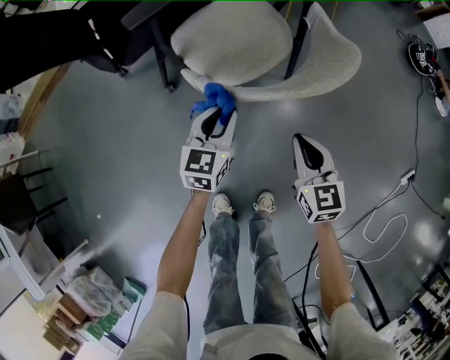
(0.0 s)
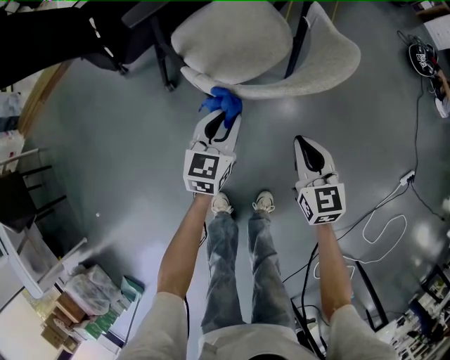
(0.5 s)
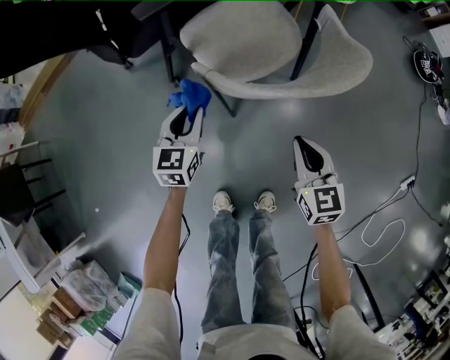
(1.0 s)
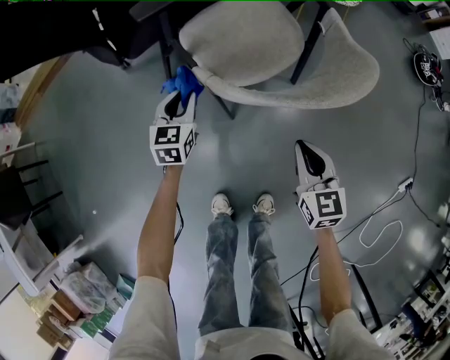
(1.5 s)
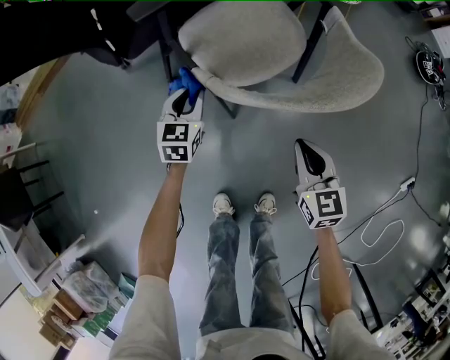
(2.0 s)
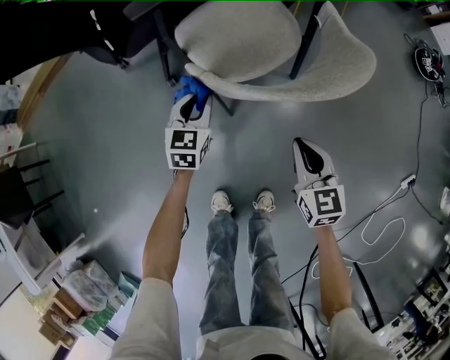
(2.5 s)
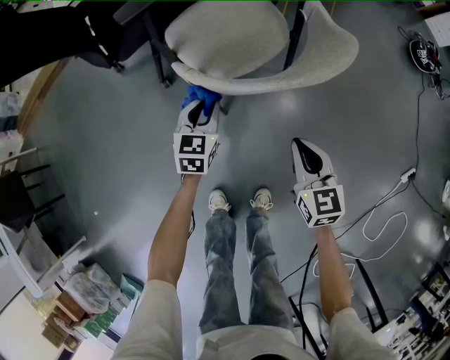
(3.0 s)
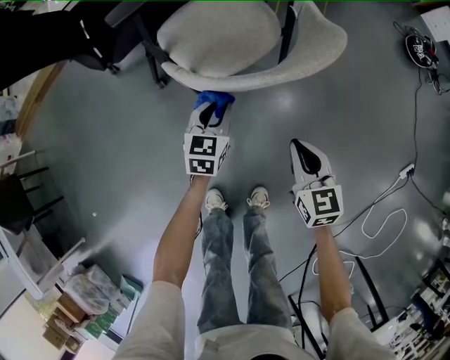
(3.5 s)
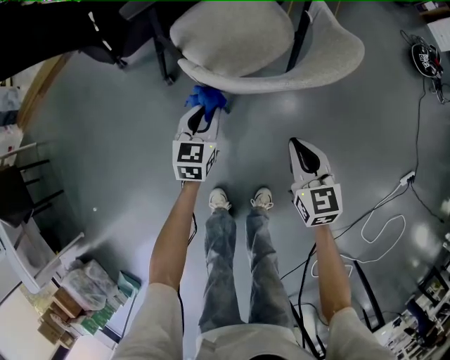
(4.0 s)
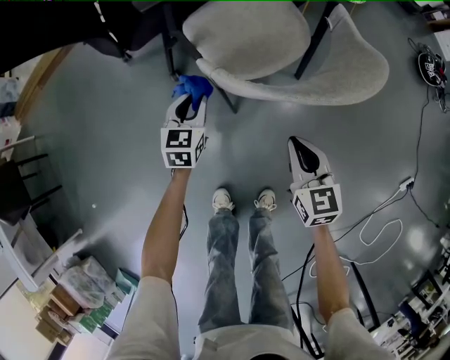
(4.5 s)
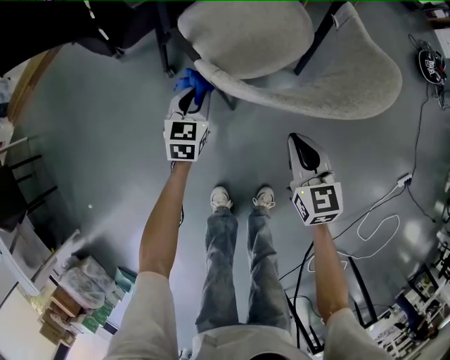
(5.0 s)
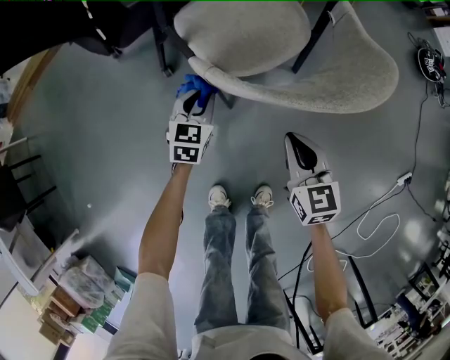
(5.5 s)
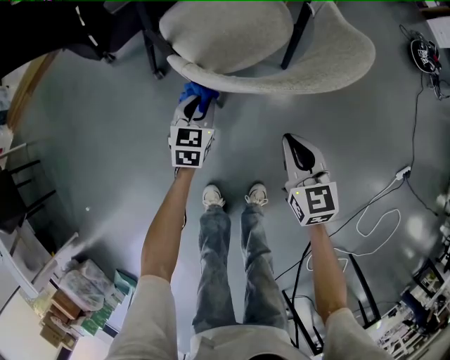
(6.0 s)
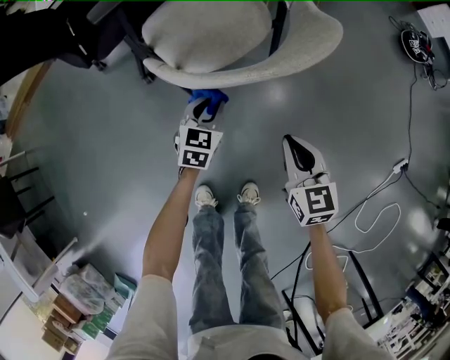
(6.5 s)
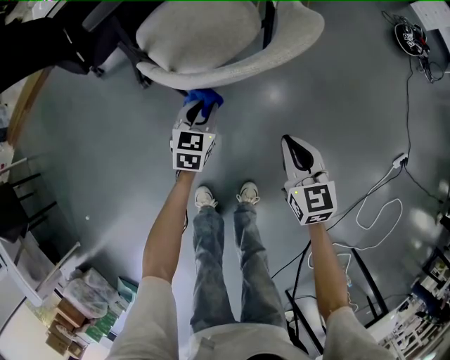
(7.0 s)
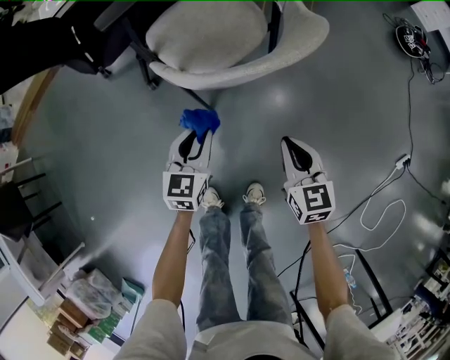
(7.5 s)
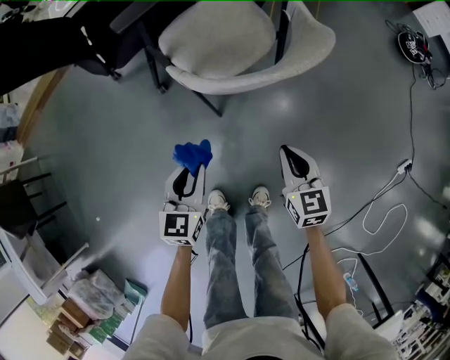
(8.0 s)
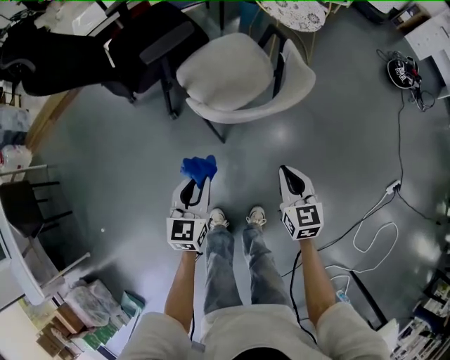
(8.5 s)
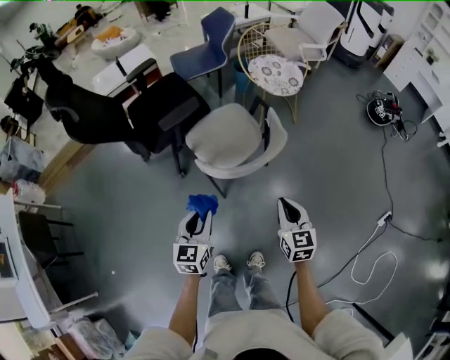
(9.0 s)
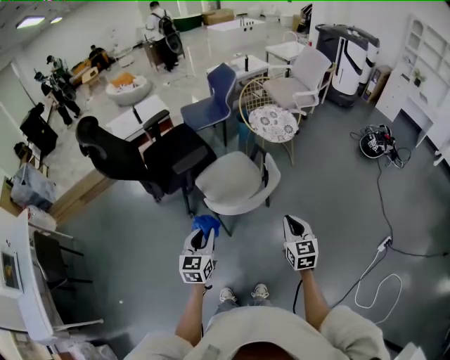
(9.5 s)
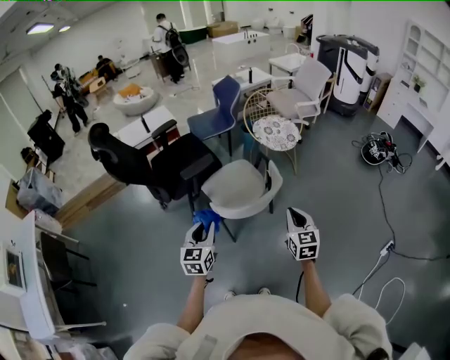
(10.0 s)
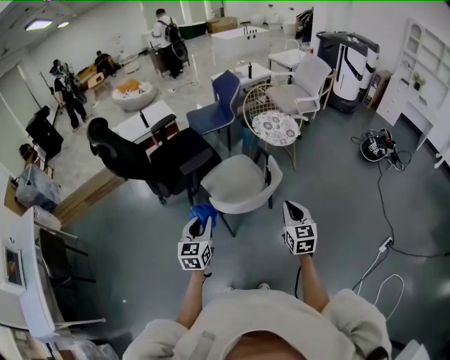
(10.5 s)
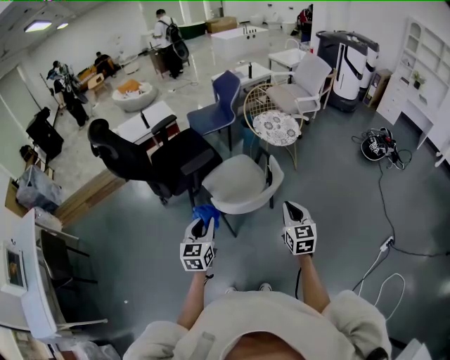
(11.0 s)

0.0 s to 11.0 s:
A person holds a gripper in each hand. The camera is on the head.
0.0 to 2.0 s: The left gripper goes roughly 15 cm to the left, forward and downward.
2.0 to 3.5 s: The right gripper moves to the right, roughly 5 cm. The left gripper shifts some 15 cm to the right and backward.
3.5 to 5.5 s: The left gripper goes roughly 15 cm to the left and downward, while the right gripper travels to the left and forward by roughly 10 cm.
5.5 to 7.5 s: The right gripper heads to the right and backward, covering some 10 cm. Meanwhile the left gripper heads backward, to the right and upward, covering about 20 cm.
7.5 to 9.0 s: The grippers both shift upward by roughly 25 cm.
9.0 to 11.0 s: The two grippers go roughly 10 cm upward.

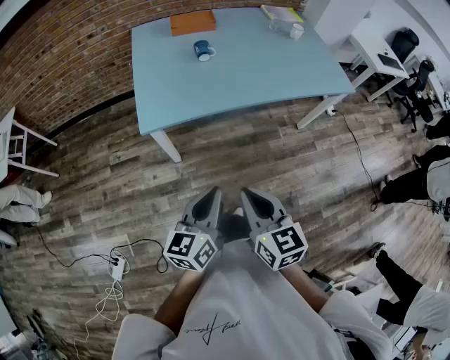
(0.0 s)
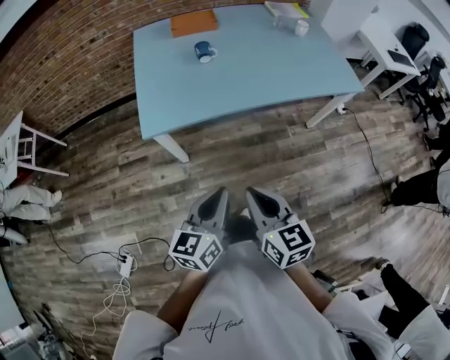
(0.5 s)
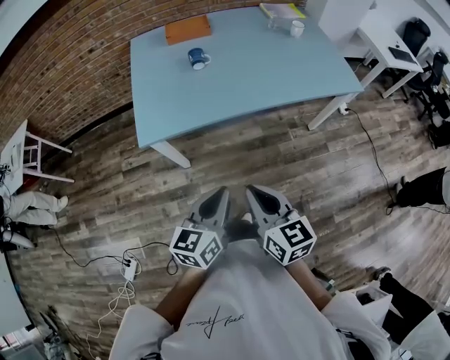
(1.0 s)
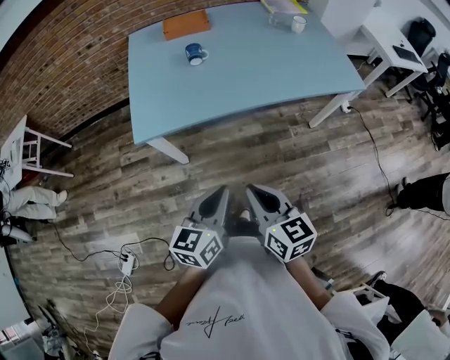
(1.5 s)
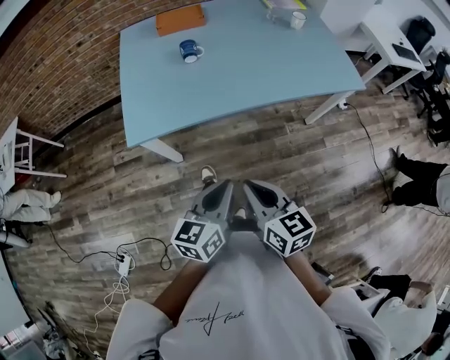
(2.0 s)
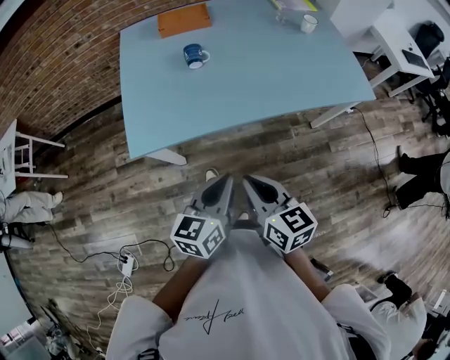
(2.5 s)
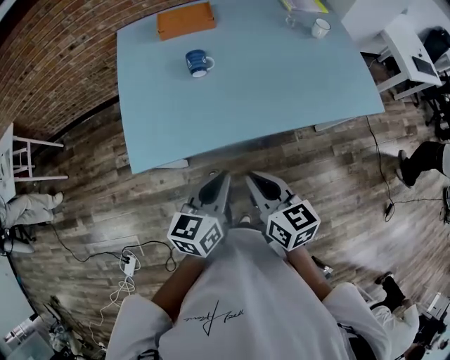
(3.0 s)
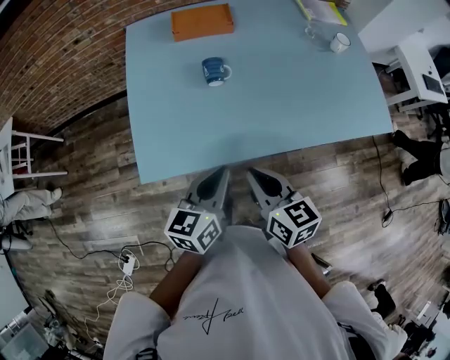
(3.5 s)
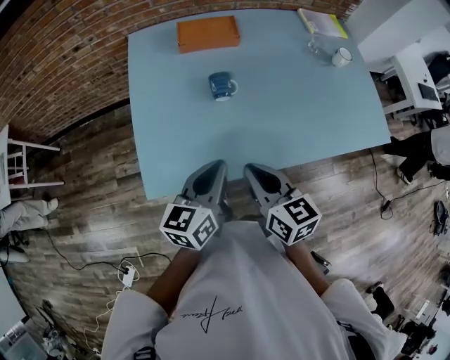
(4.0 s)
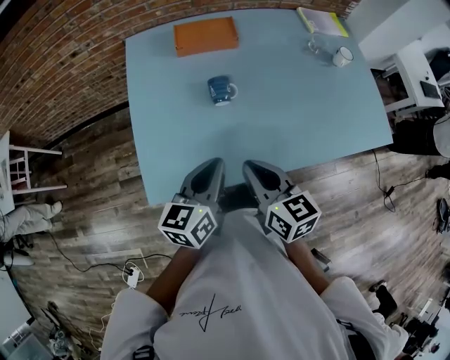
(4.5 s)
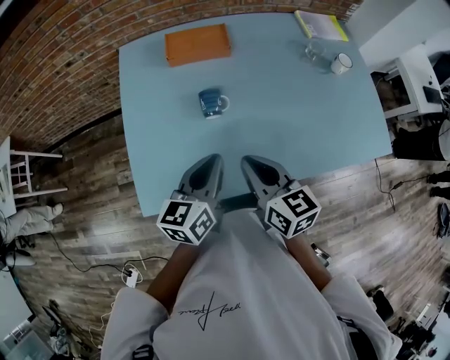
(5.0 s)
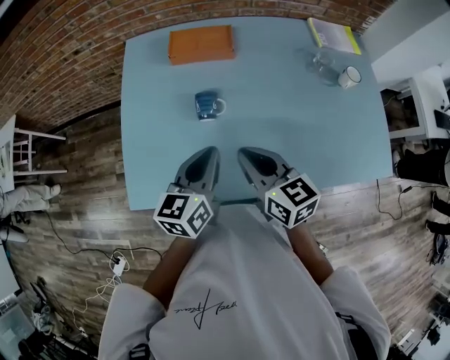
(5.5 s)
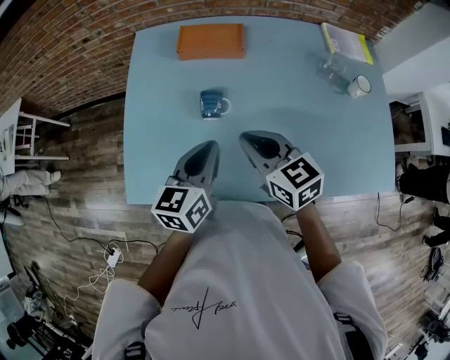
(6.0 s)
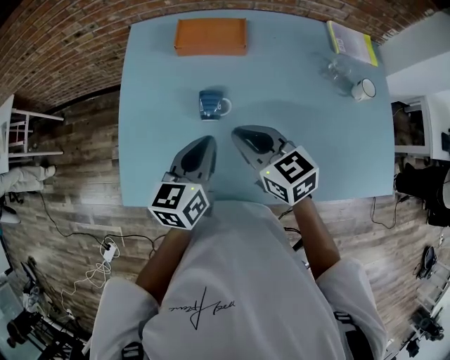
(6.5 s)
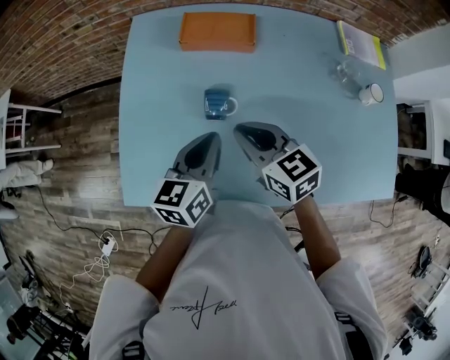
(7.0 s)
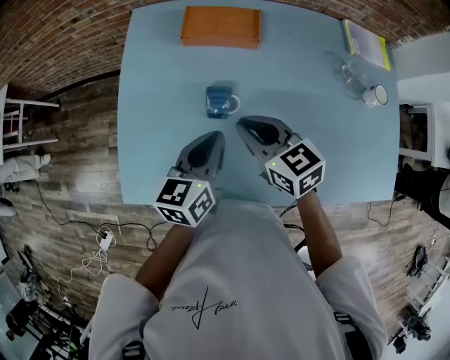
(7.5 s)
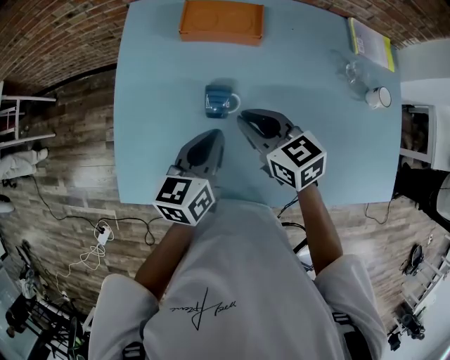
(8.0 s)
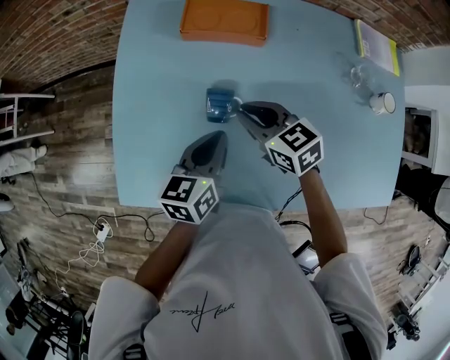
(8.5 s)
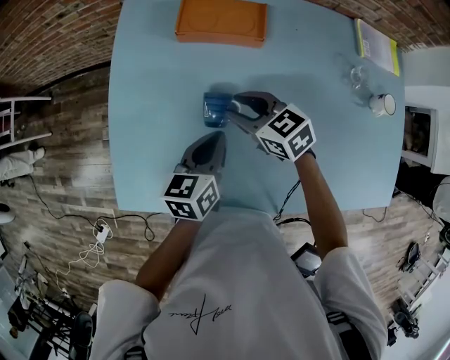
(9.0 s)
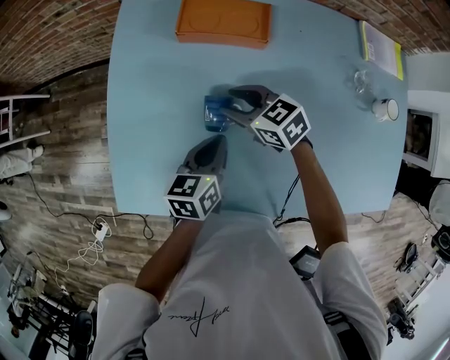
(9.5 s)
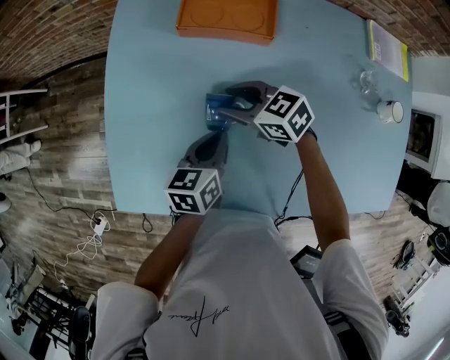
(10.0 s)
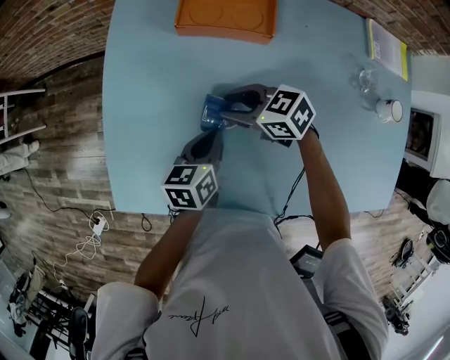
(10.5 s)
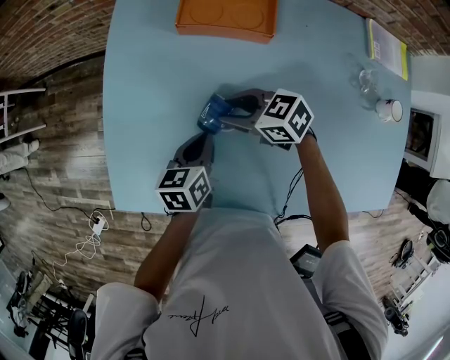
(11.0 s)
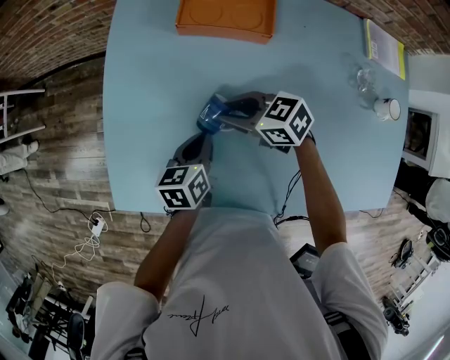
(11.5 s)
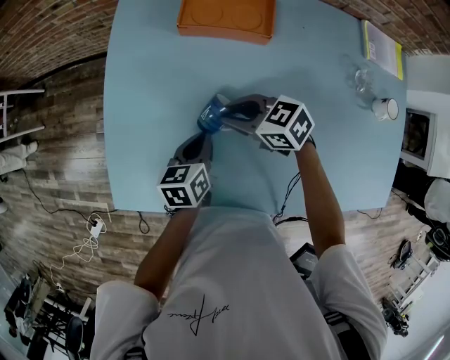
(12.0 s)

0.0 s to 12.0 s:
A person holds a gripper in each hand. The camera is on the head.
0.0 to 2.0 s: The grippers both shift to the right and forward by approximately 15 cm.
2.0 to 4.0 s: The grippers both shift forward by roughly 30 cm.
4.0 to 6.0 s: The two grippers go approximately 15 cm forward and to the right. The right gripper turns by roughly 30 degrees.
6.0 to 8.0 s: The left gripper heads forward, covering roughly 5 cm. Meanwhile the right gripper heads forward and downward, covering about 10 cm.
8.0 to 10.0 s: The left gripper shifts some 10 cm downward. Meanwhile the right gripper goes approximately 10 cm downward and forward, swivels approximately 20 degrees, and opens up.
10.0 to 12.0 s: The left gripper changes place by approximately 5 cm.

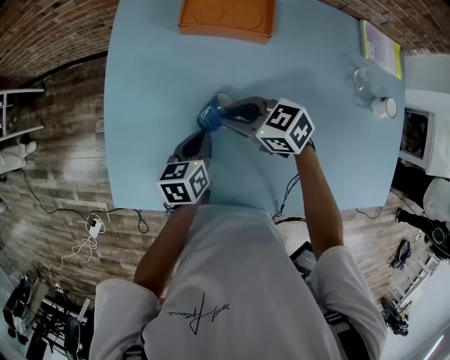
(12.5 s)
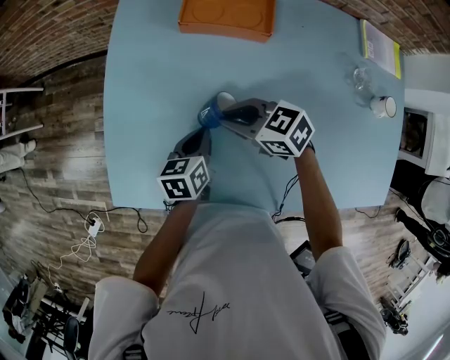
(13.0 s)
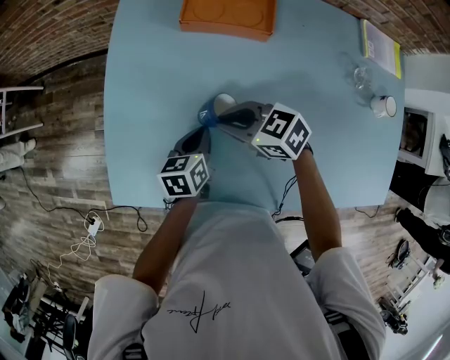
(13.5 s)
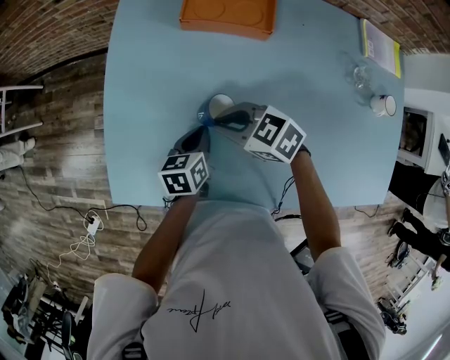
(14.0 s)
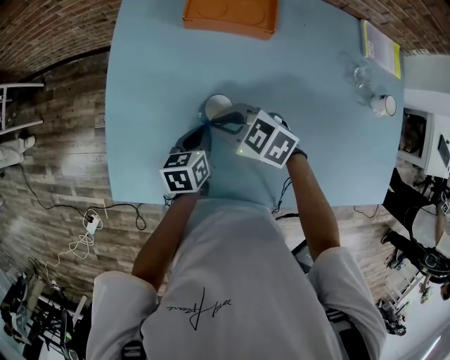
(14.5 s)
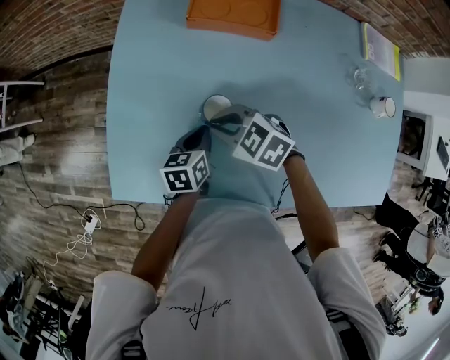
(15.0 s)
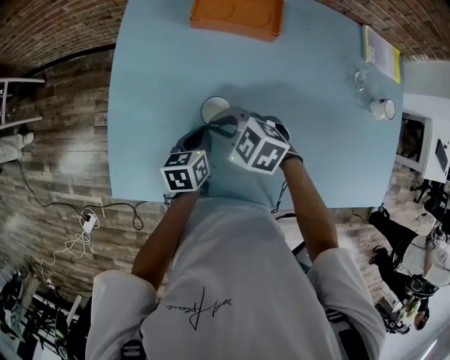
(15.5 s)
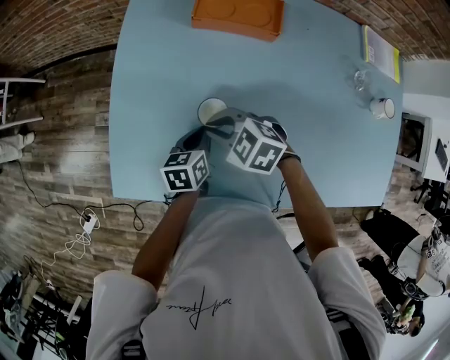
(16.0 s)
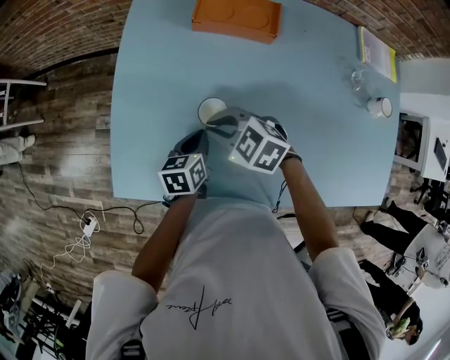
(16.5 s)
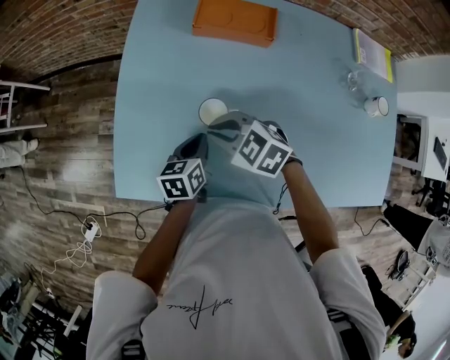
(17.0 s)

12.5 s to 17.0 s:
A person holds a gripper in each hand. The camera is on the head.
12.5 to 14.5 s: The right gripper shifts by about 5 cm.
14.5 to 17.0 s: There are only small adjustments of the grippers.
